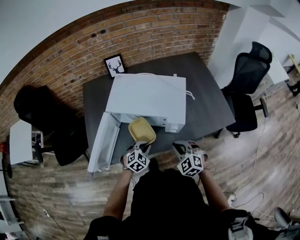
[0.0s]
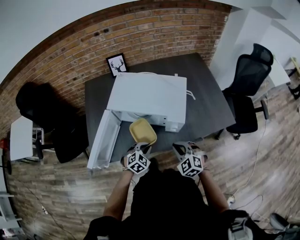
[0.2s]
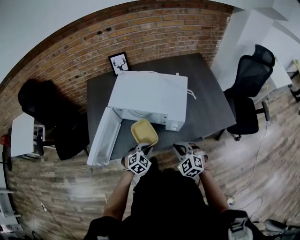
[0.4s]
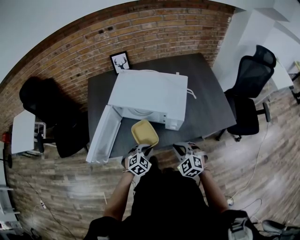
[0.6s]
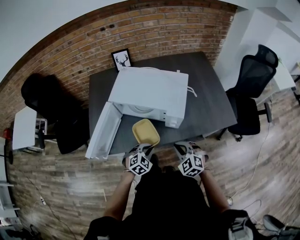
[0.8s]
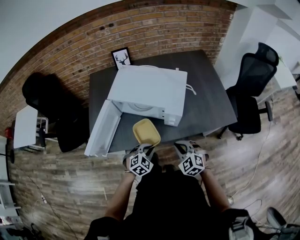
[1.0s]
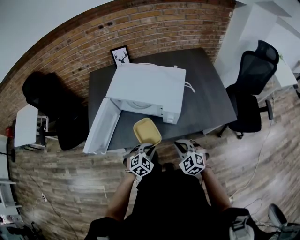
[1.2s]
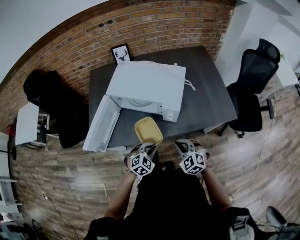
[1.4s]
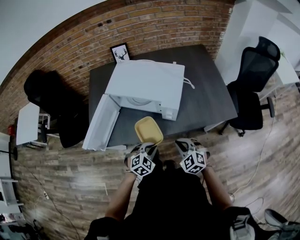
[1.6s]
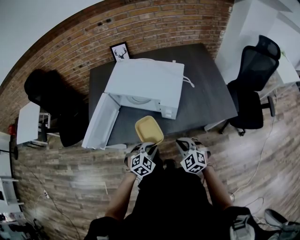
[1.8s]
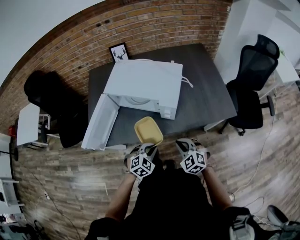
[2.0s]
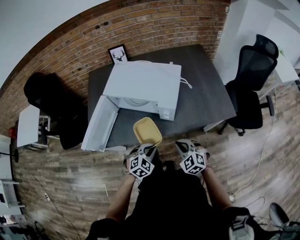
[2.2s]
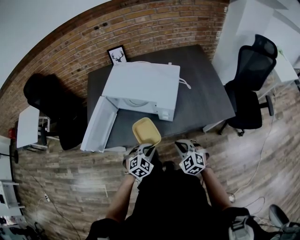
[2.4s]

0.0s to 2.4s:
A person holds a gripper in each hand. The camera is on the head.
0.0s to 1.2s: The left gripper moves backward and to the right, about 10 cm; the right gripper moves backward, roughly 5 cm.
1.2s to 2.4s: The grippers make only small movements.

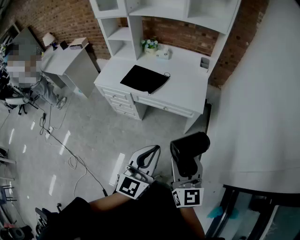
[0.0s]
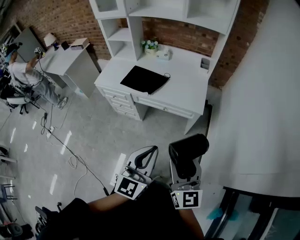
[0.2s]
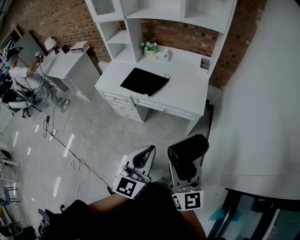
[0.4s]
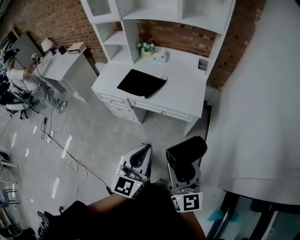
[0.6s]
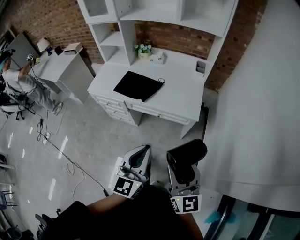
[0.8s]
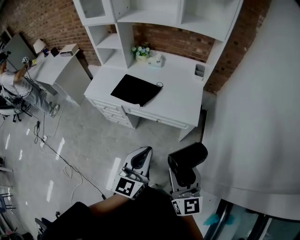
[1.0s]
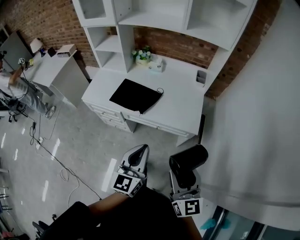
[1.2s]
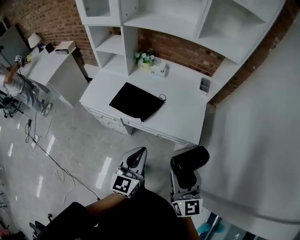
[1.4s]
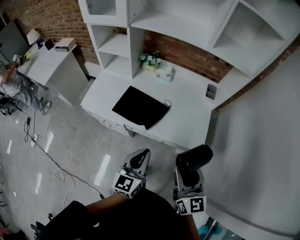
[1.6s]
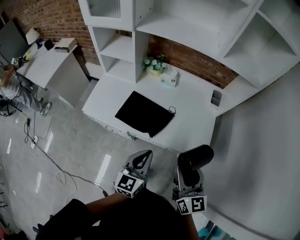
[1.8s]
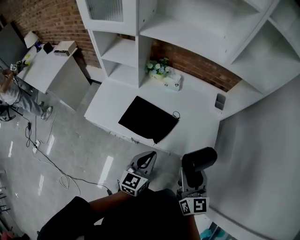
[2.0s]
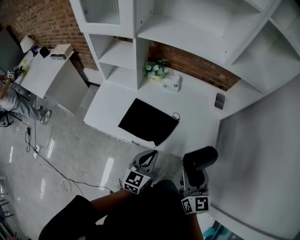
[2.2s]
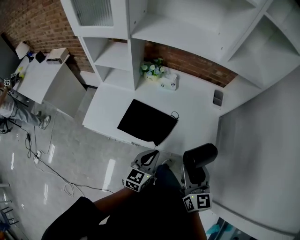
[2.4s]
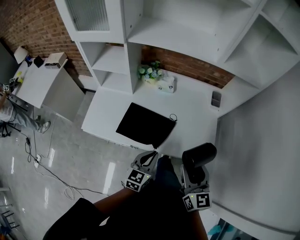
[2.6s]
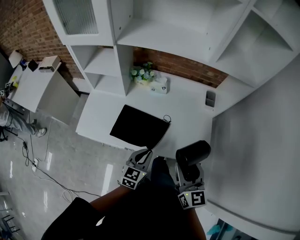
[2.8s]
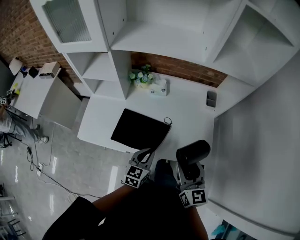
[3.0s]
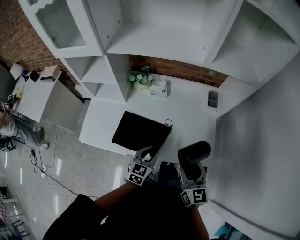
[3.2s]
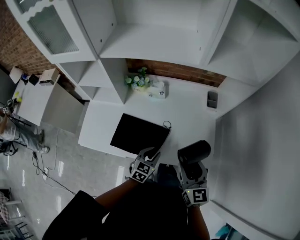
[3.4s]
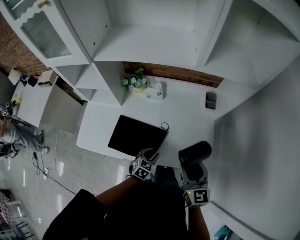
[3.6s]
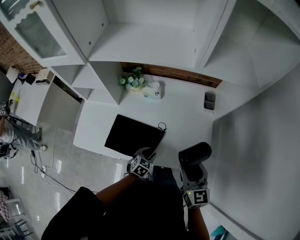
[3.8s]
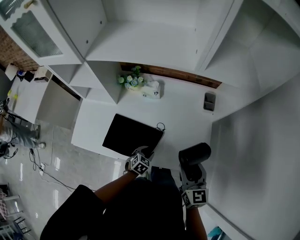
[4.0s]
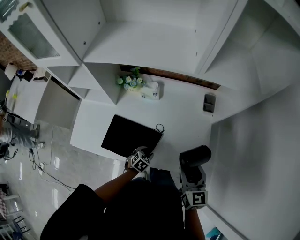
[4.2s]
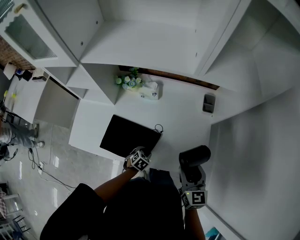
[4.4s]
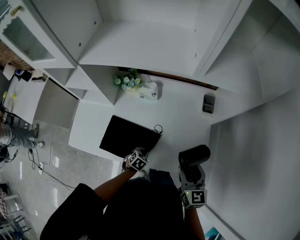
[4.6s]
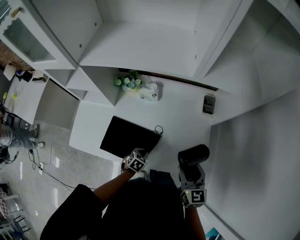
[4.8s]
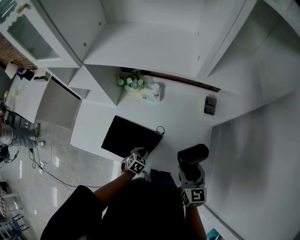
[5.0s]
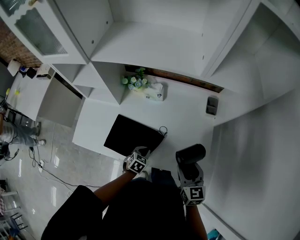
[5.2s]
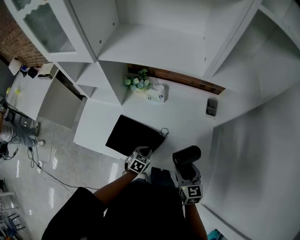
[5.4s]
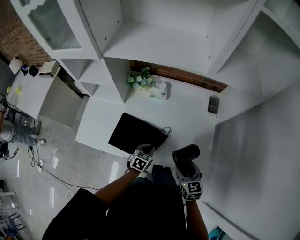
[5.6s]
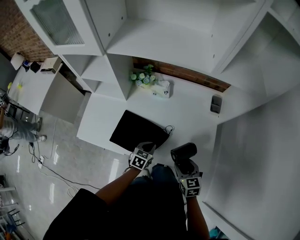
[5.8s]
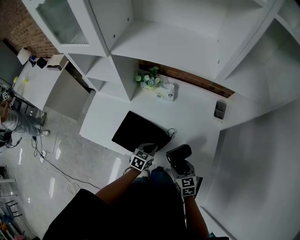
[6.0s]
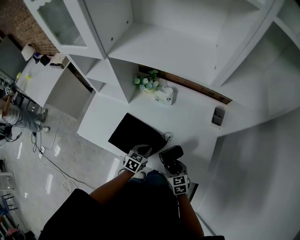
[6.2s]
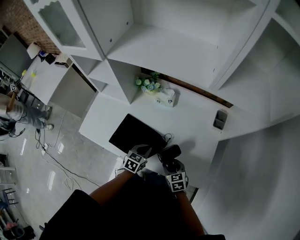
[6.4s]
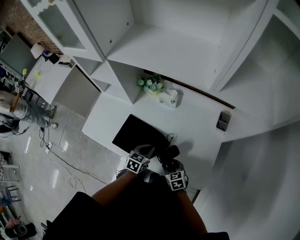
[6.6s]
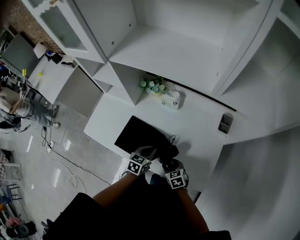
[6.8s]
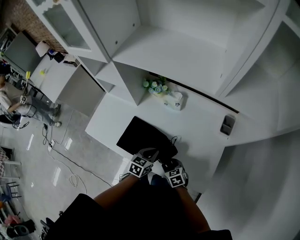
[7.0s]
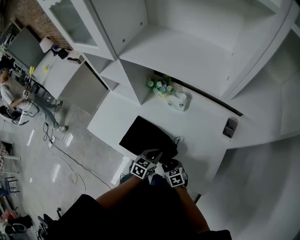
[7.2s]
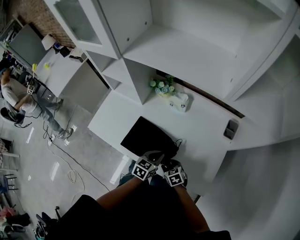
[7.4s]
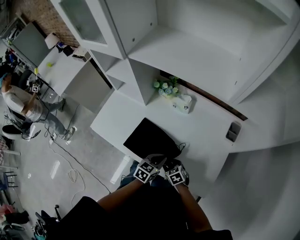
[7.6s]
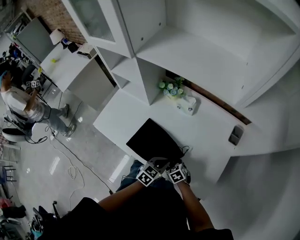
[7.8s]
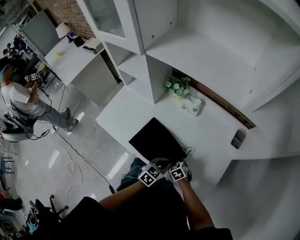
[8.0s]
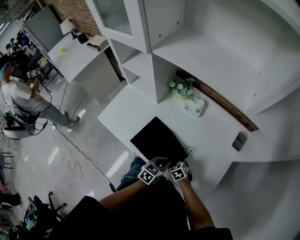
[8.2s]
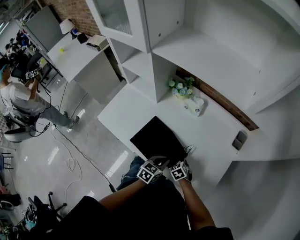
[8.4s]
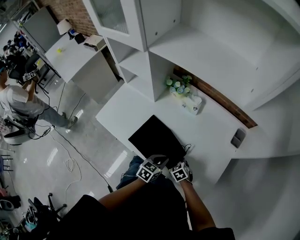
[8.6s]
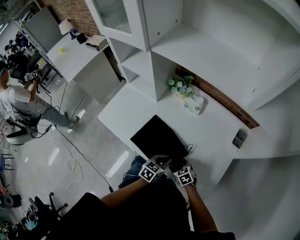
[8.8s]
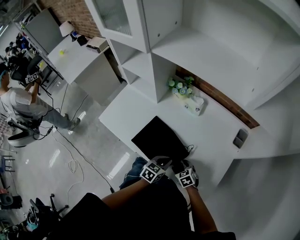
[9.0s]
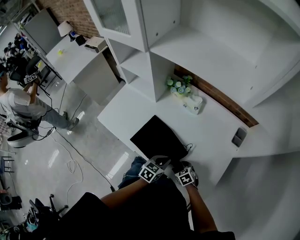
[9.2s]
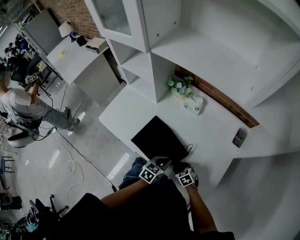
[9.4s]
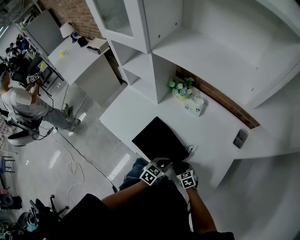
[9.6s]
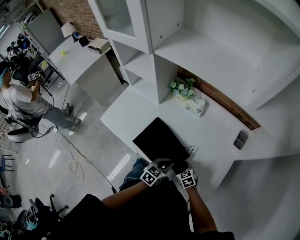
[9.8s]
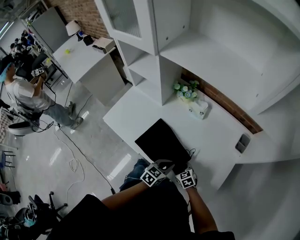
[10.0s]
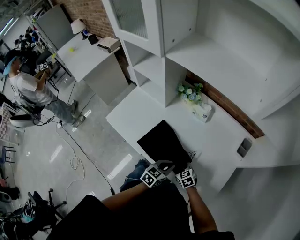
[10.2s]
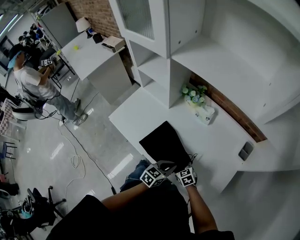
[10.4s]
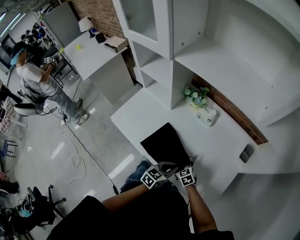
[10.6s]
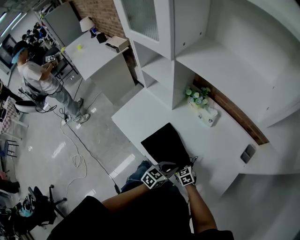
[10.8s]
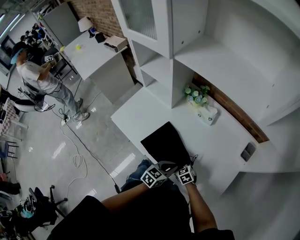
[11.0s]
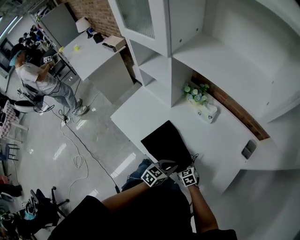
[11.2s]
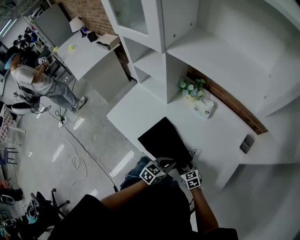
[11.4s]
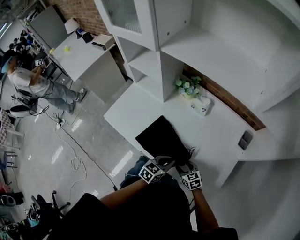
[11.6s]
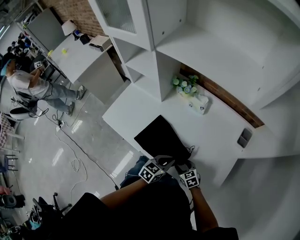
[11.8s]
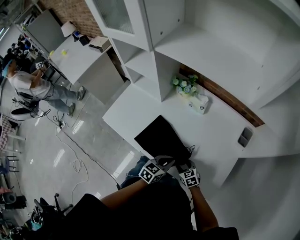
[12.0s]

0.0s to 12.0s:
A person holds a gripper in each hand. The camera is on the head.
0.0s to 1.6s: Both grippers travel together forward, some 30 cm.
1.6s to 3.0s: The right gripper shifts about 15 cm forward; the left gripper heads forward and downward, covering roughly 20 cm, and turns by roughly 20 degrees.
3.0s to 4.4s: The left gripper heads downward and forward, covering some 25 cm, angles its fingers downward, by roughly 40 degrees, and opens up. Meanwhile the right gripper shifts about 15 cm forward, to the right and downward.
4.4s to 6.0s: The right gripper travels downward and to the left by some 15 cm, and swivels some 30 degrees, while the left gripper travels upward by some 10 cm, turns by roughly 30 degrees, and closes its fingers.
6.0s to 7.6s: The right gripper moves downward, to the left and forward, roughly 15 cm, and turns by about 30 degrees.
7.6s to 9.0s: The grippers move only a little.
9.0s to 10.4s: The right gripper goes approximately 5 cm to the left.
10.4s to 12.0s: The right gripper ends up about 5 cm from where it was.

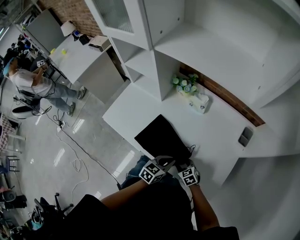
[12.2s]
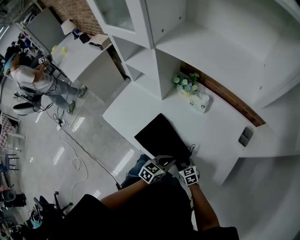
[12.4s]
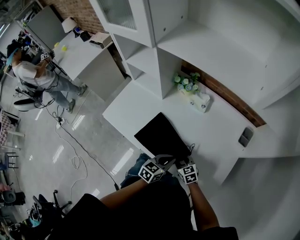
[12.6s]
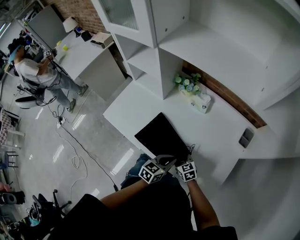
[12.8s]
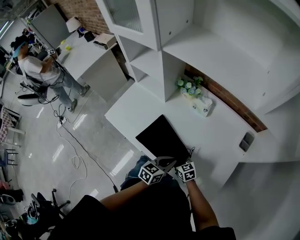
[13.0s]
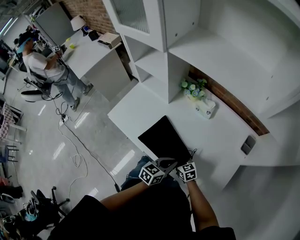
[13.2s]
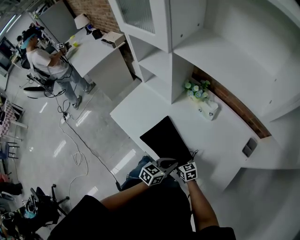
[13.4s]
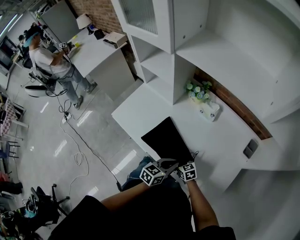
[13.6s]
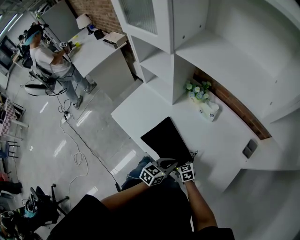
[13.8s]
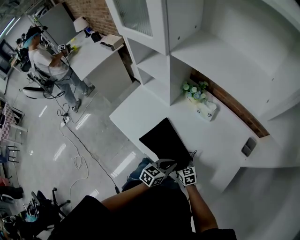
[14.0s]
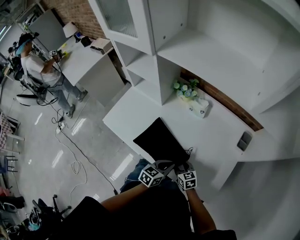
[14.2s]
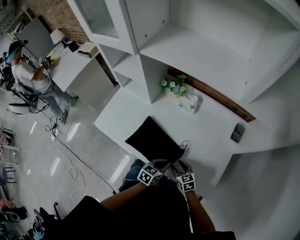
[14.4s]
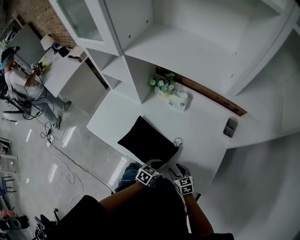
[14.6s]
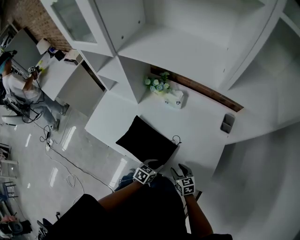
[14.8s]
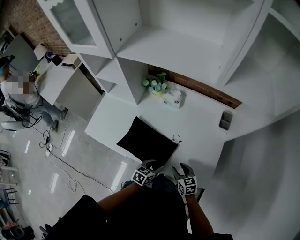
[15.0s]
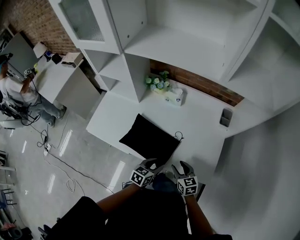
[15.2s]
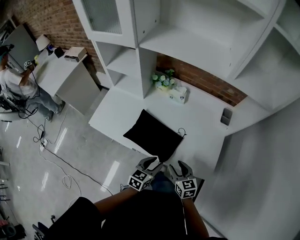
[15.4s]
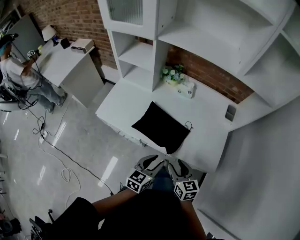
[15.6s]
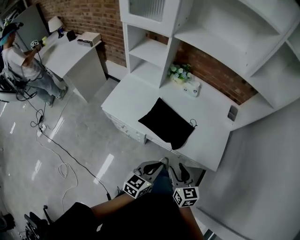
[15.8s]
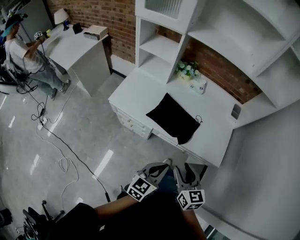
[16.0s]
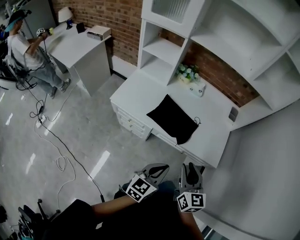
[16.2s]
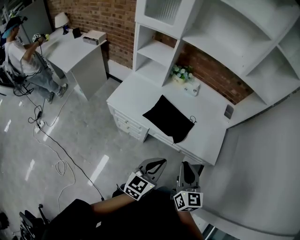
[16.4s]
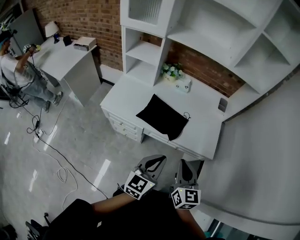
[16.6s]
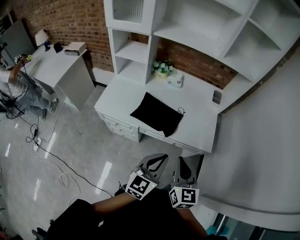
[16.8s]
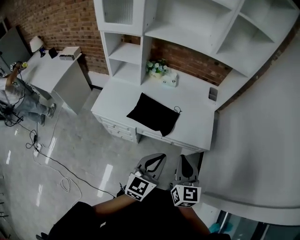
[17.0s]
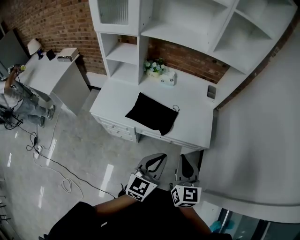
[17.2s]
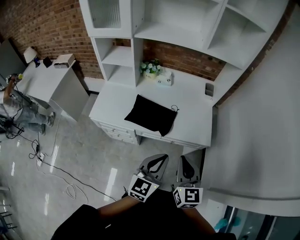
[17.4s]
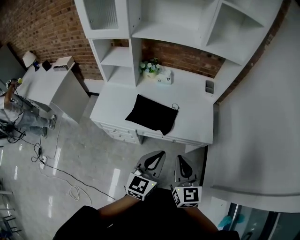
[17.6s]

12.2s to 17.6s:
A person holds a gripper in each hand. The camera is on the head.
12.2s to 13.6s: The right gripper travels to the left by approximately 5 cm.
13.6s to 15.0s: The left gripper shifts about 10 cm downward and backward, turns by about 20 degrees, and opens its fingers. The right gripper is displaced to the right and backward by approximately 15 cm, and rotates some 30 degrees.
15.0s to 16.2s: The right gripper shifts roughly 40 cm upward, backward and to the left, and swivels some 30 degrees. Meanwhile the left gripper heads backward, upward and to the left, covering approximately 35 cm, changes its angle by some 30 degrees, and closes.
16.2s to 17.6s: The right gripper moves some 5 cm, and closes up. The left gripper shifts about 10 cm upward.

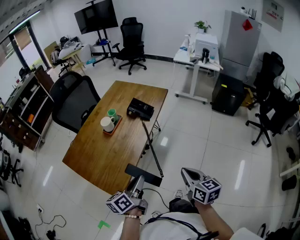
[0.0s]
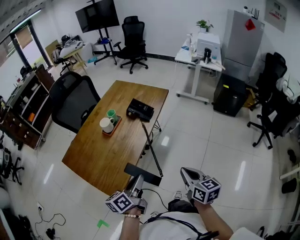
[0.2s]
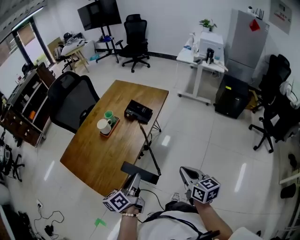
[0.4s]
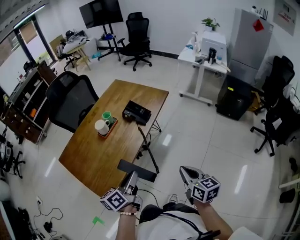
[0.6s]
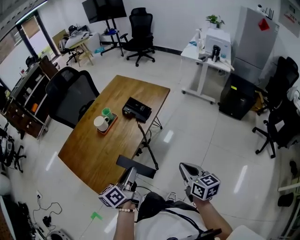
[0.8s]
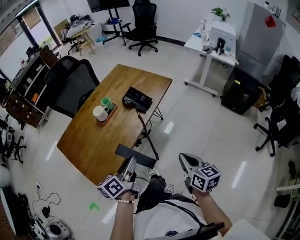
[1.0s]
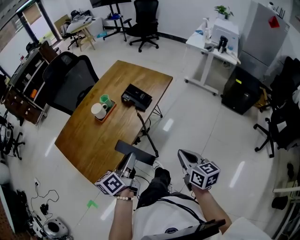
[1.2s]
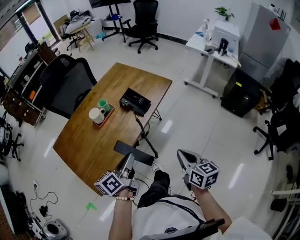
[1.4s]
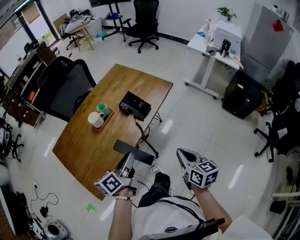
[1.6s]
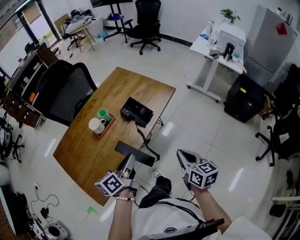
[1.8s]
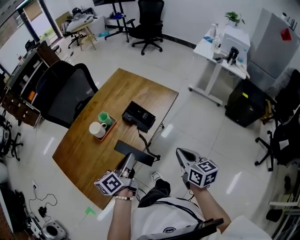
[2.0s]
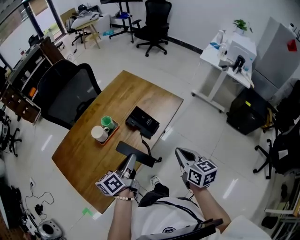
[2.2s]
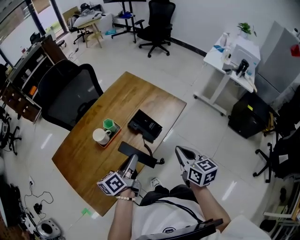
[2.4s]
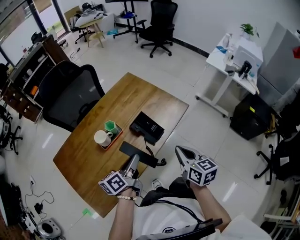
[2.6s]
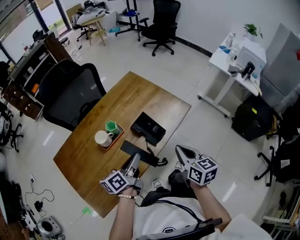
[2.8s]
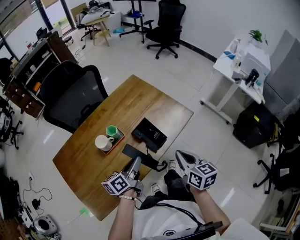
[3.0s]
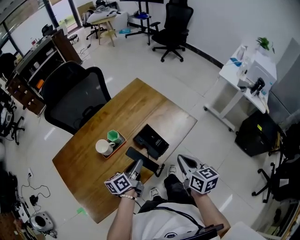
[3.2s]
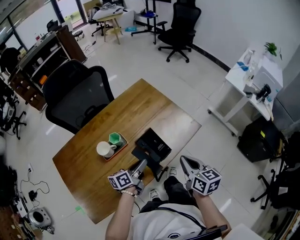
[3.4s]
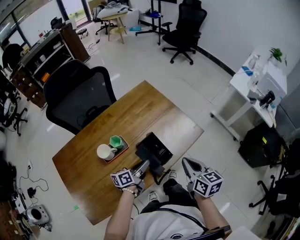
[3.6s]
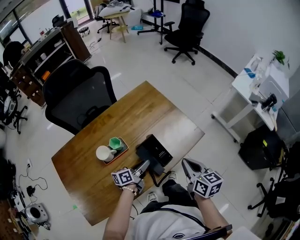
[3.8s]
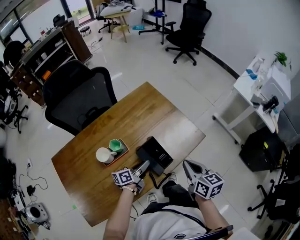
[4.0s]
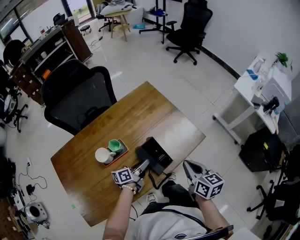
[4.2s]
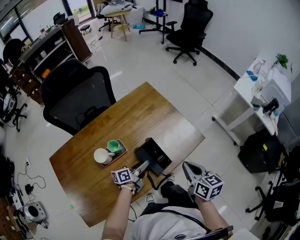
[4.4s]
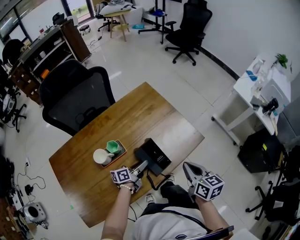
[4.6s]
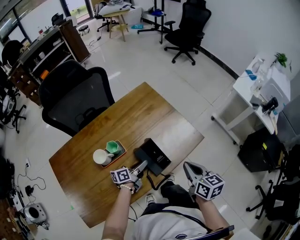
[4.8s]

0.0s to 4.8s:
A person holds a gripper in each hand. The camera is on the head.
0.0s to 1.6s: Both grippers move forward and to the right, some 20 cm.
1.6s to 3.2s: The right gripper is displaced forward by roughly 25 cm. Meanwhile the left gripper is displaced forward and downward by about 20 cm.
3.2s to 4.8s: The right gripper moves forward, some 10 cm, while the left gripper shifts approximately 15 cm downward and forward.
